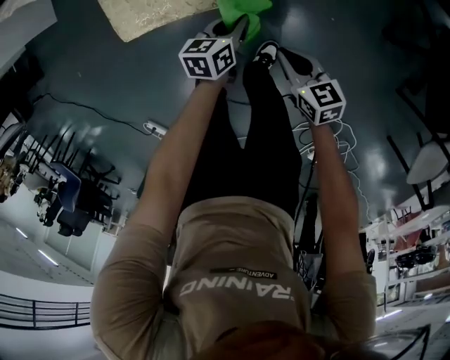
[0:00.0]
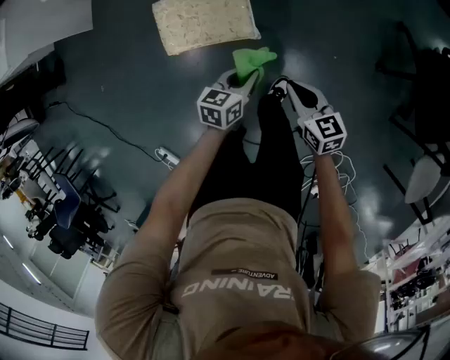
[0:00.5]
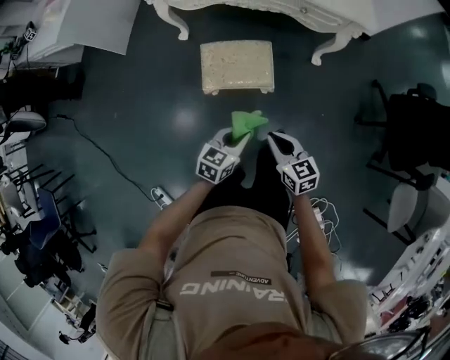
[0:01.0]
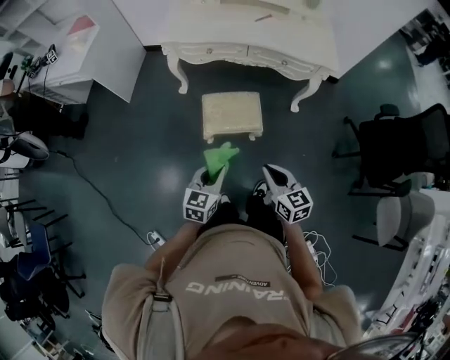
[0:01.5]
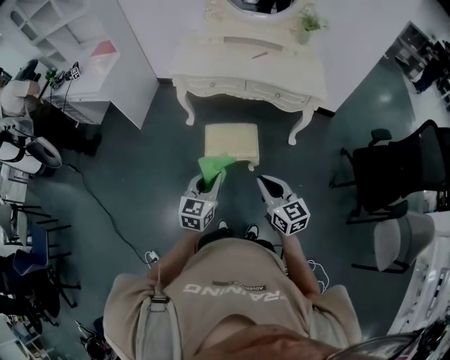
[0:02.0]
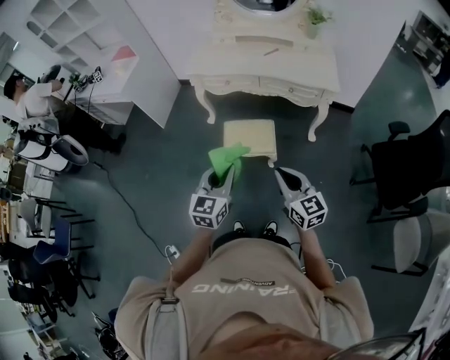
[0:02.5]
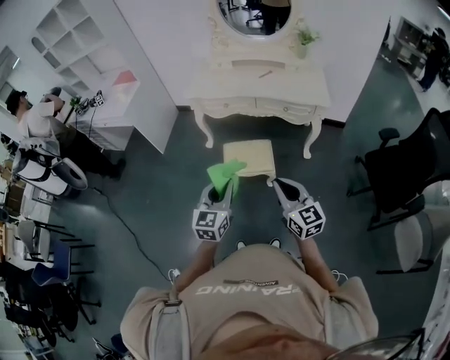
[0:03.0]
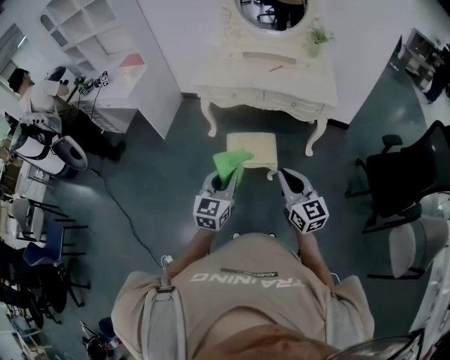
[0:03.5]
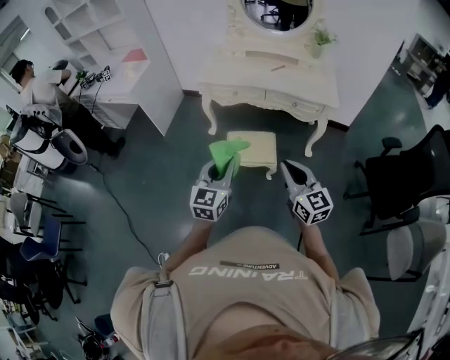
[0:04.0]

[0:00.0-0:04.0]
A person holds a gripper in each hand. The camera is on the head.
0.0 to 2.0 s: The left gripper shifts about 80 cm upward, to the left and backward, and swivels approximately 40 degrees; the right gripper moves upward and to the left, approximately 70 cm, and turns by about 30 degrees.
2.0 to 4.0 s: The grippers both shift upward and backward by some 10 cm.

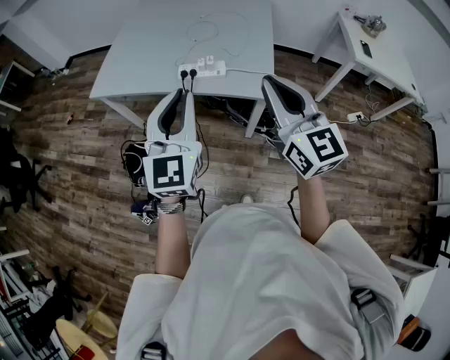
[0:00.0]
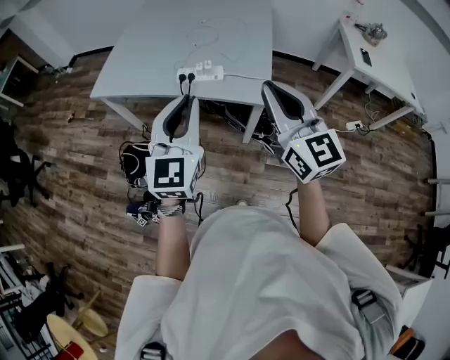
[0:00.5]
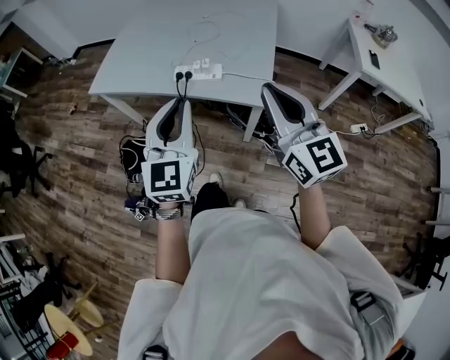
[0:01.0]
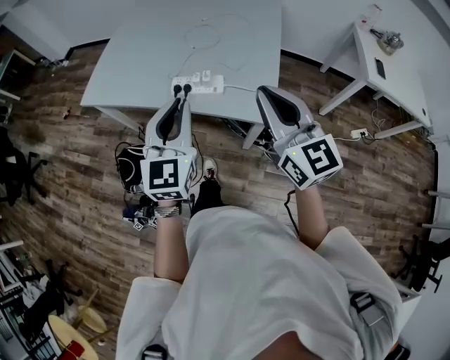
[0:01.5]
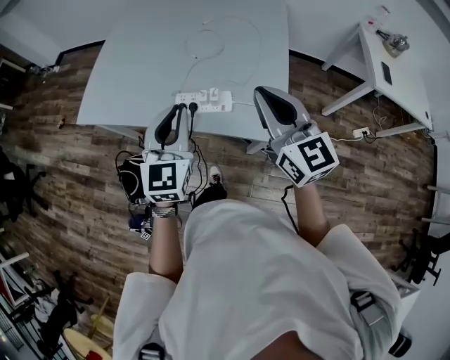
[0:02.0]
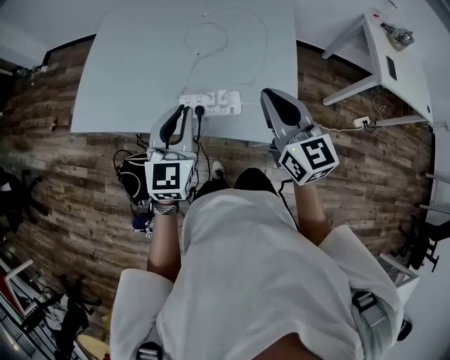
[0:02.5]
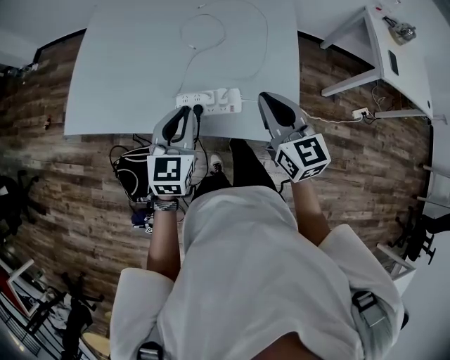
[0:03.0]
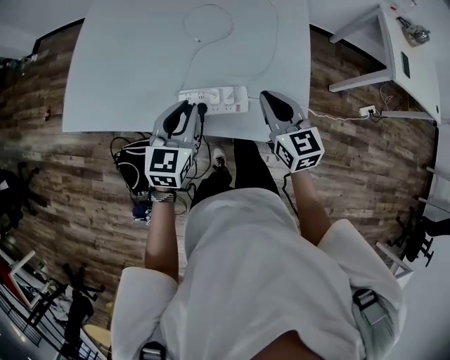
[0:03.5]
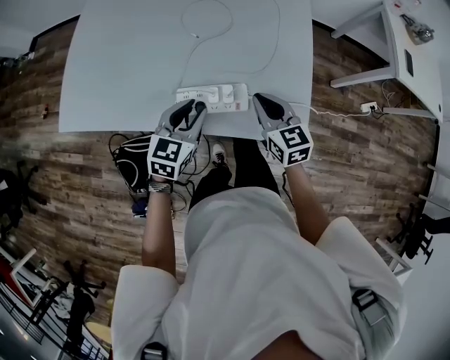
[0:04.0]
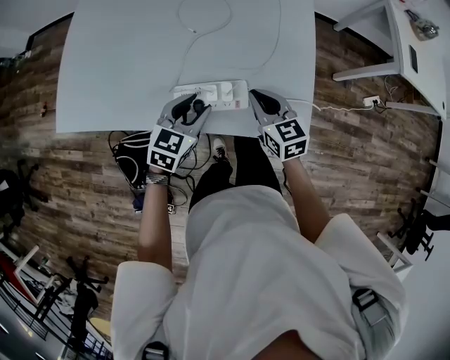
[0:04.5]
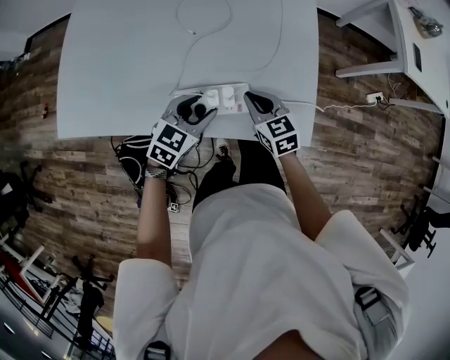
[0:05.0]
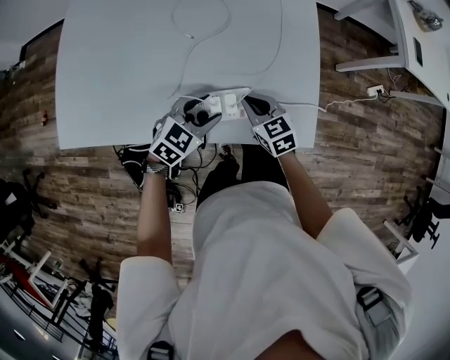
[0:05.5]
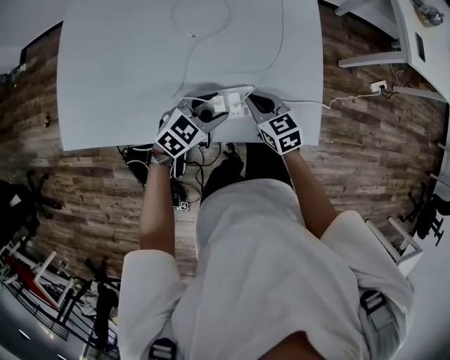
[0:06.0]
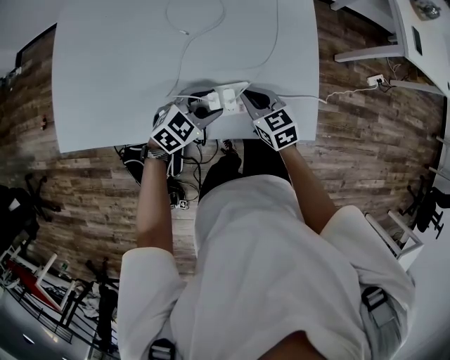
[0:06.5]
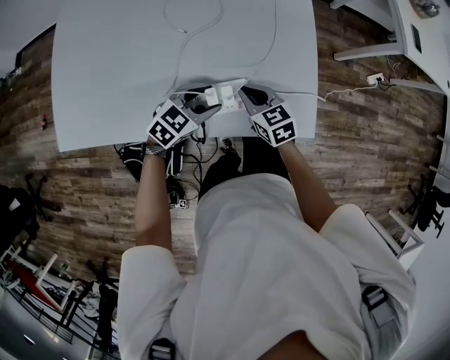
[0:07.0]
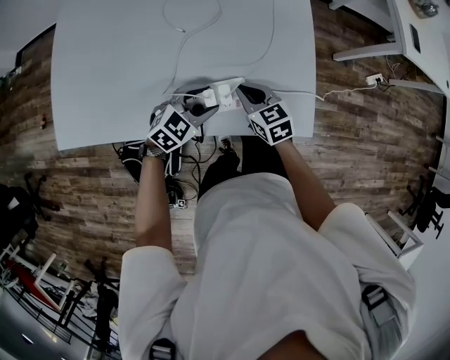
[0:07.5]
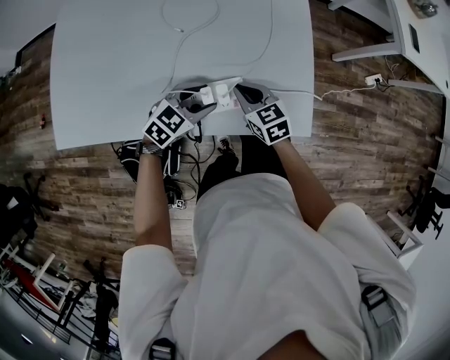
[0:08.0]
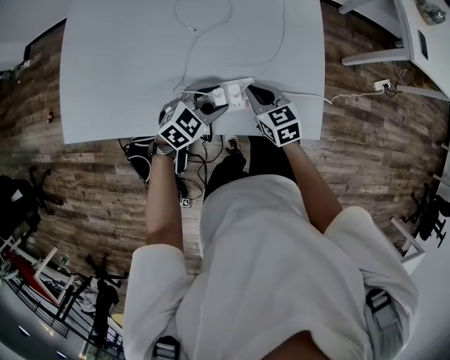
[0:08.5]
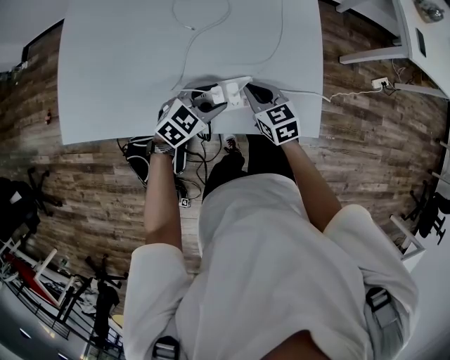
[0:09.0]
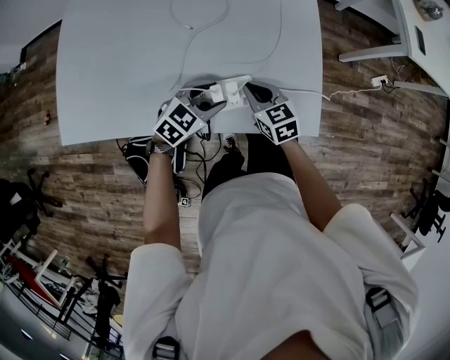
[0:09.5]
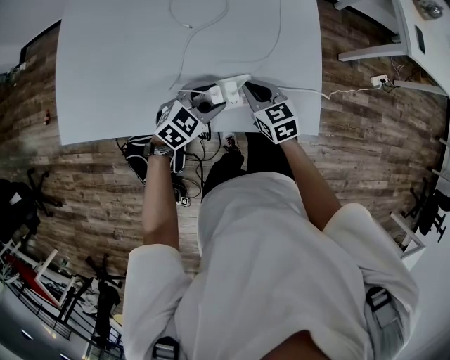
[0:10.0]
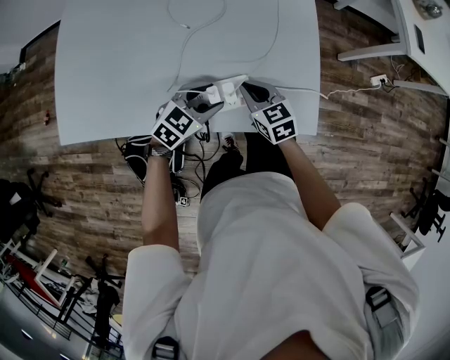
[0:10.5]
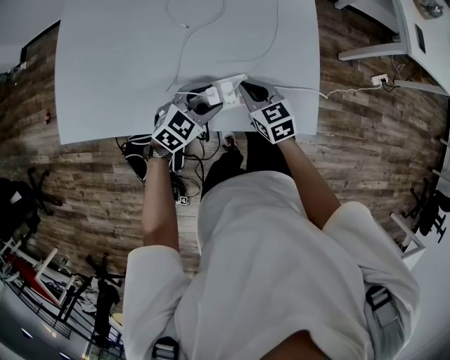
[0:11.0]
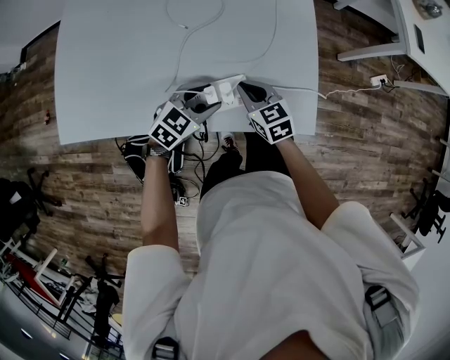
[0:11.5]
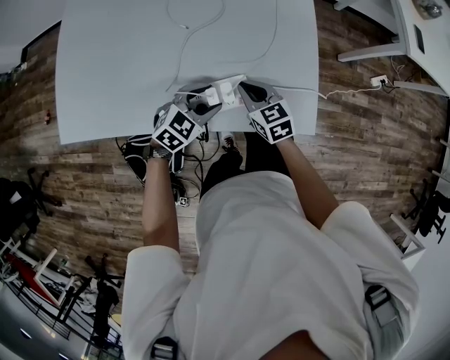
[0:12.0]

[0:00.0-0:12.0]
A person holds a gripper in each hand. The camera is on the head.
0.0 to 2.0 s: The right gripper goes approximately 25 cm forward; the left gripper moves forward and downward, about 25 cm.
2.0 to 4.0 s: Both grippers travel together downward and forward, approximately 25 cm. The left gripper rotates some 30 degrees; the right gripper turns by about 30 degrees.
4.0 to 6.0 s: The two grippers go approximately 10 cm downward. The left gripper turns by roughly 40 degrees.
6.0 to 12.0 s: The grippers stay close to where they were, moving slightly.

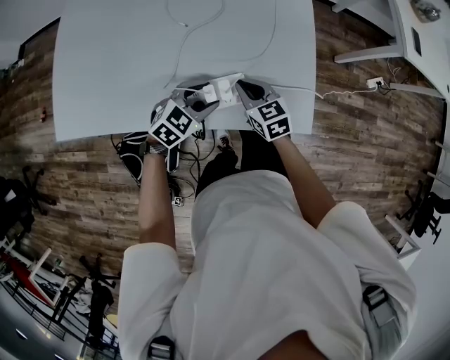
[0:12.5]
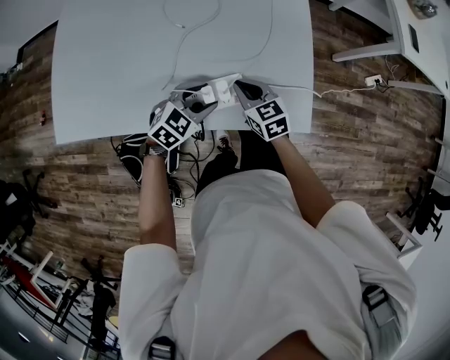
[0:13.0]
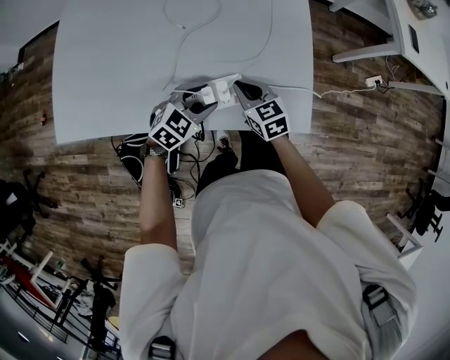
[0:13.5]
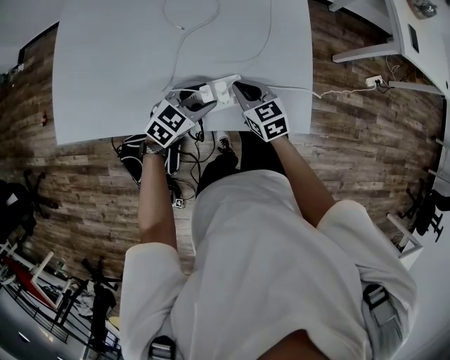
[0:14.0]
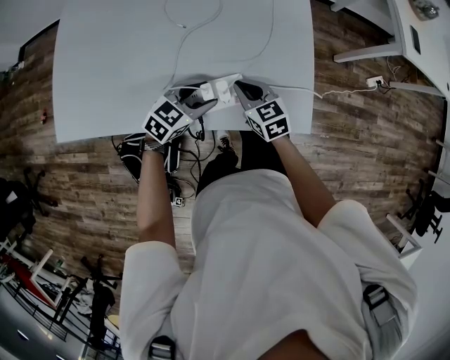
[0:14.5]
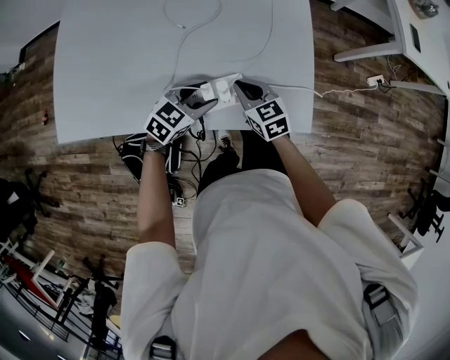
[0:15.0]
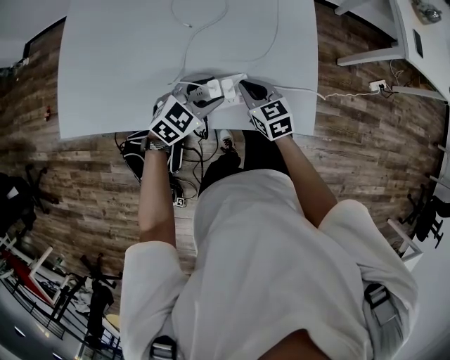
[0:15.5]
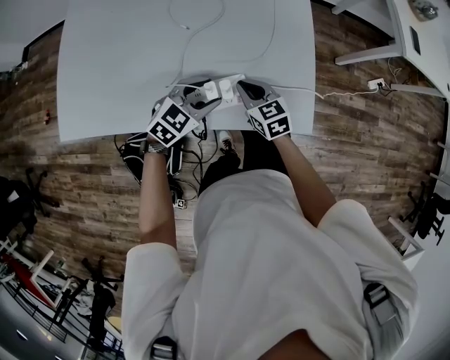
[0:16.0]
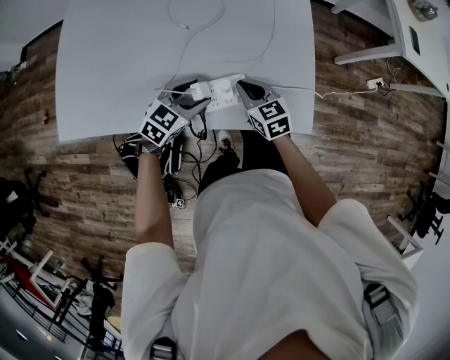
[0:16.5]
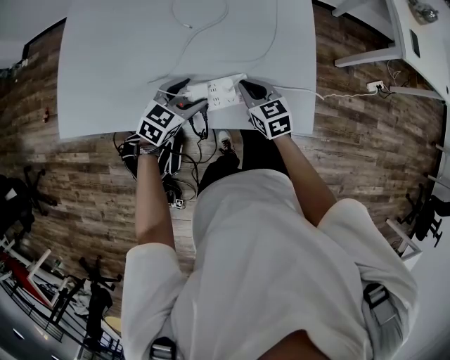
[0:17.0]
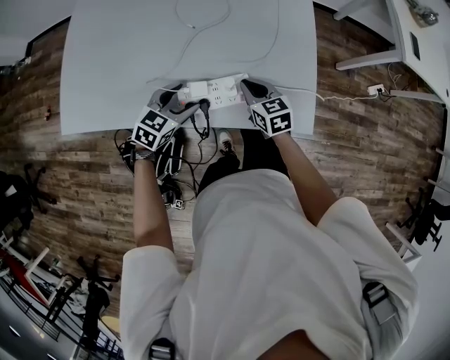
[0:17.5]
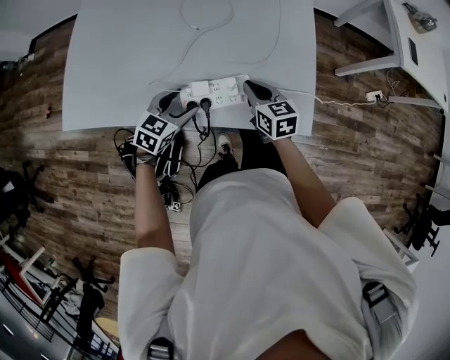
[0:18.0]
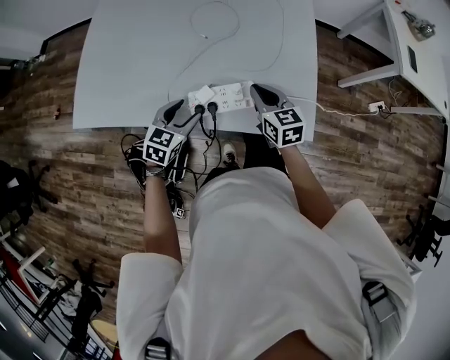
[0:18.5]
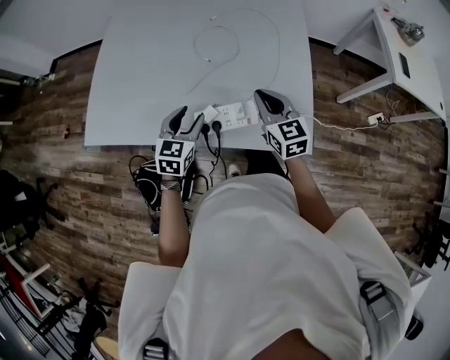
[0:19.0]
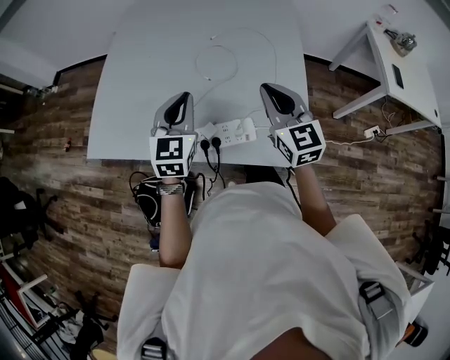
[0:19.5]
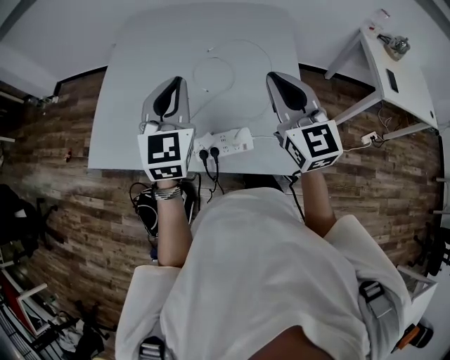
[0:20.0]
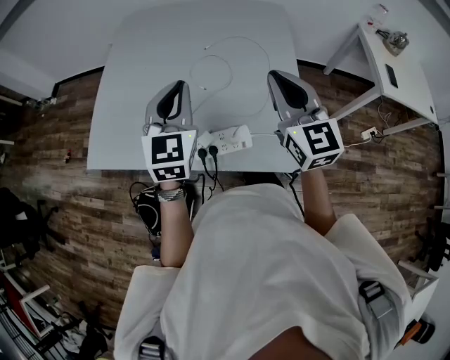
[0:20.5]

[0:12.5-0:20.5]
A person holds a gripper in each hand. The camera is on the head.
12.5 to 16.5 s: There are only small adjustments of the grippers.
16.5 to 18.5 s: The right gripper travels upward by roughly 10 cm. Meanwhile the left gripper moves to the left and backward, approximately 10 cm, and swivels approximately 20 degrees.
18.5 to 20.5 s: Both grippers travel together upward, about 30 cm. The left gripper changes its angle by about 40 degrees, and closes; the right gripper rotates some 30 degrees.

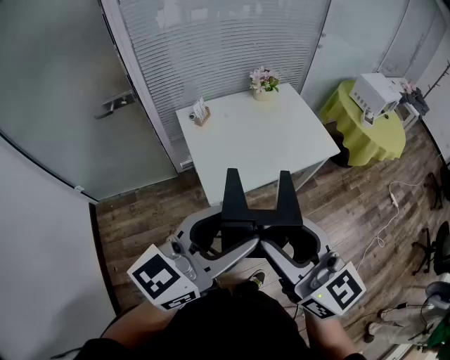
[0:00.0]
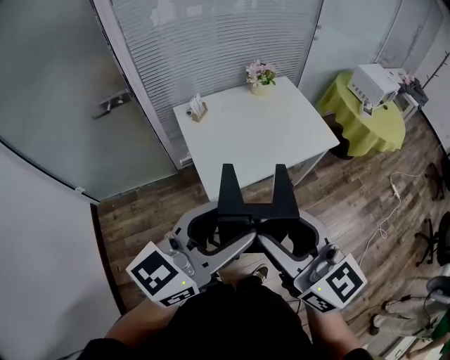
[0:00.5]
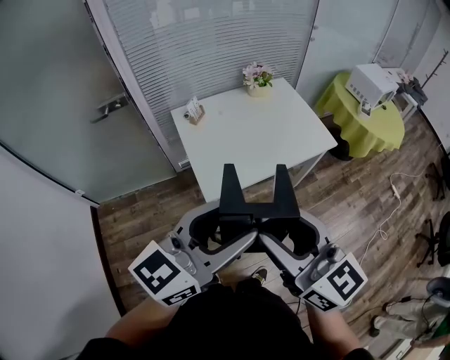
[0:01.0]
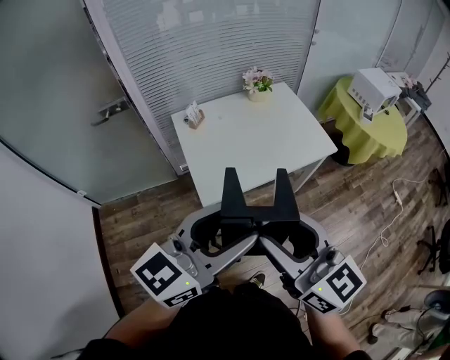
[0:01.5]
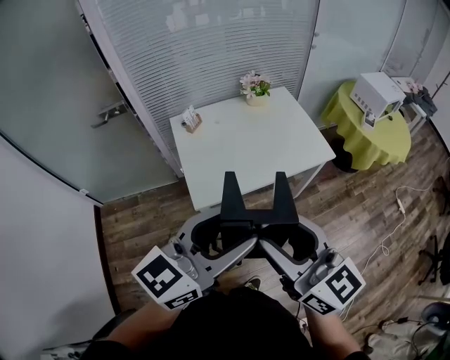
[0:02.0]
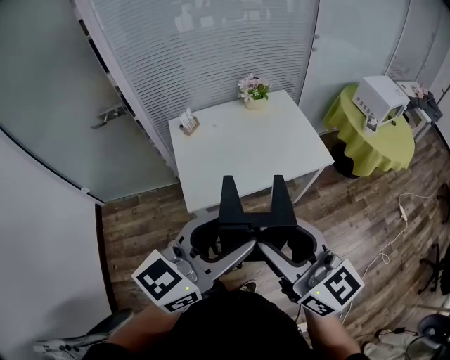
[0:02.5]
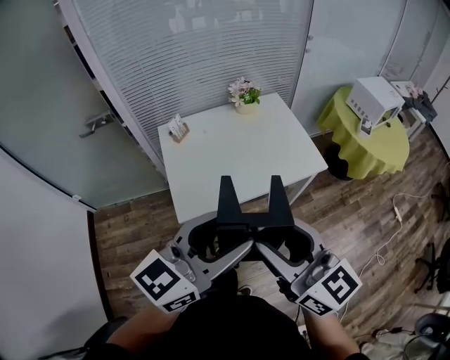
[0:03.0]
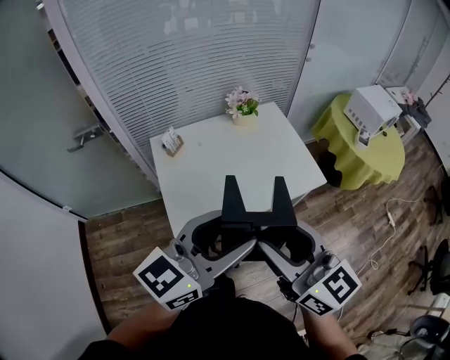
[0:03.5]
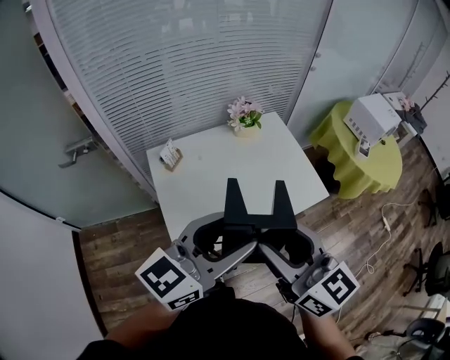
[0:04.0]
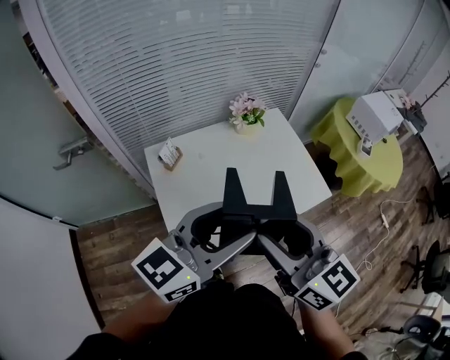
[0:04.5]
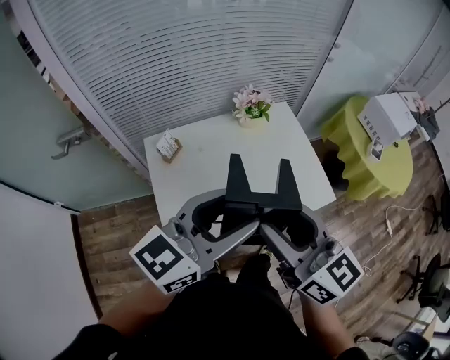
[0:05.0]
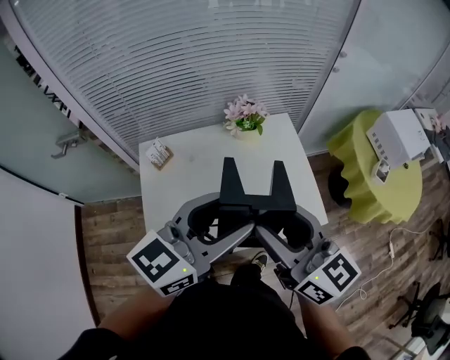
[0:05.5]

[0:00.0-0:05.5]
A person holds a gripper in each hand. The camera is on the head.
0.0 to 2.0 s: The grippers both shift to the right by roughly 10 cm.
2.0 to 3.5 s: Both grippers move forward, roughly 15 cm.
3.5 to 5.5 s: The grippers both shift forward by roughly 25 cm.
